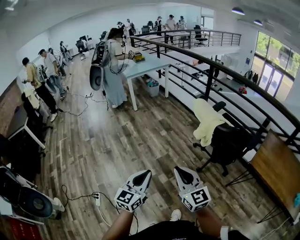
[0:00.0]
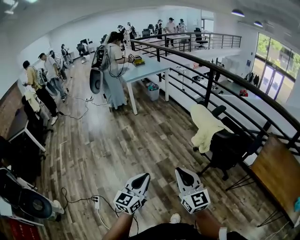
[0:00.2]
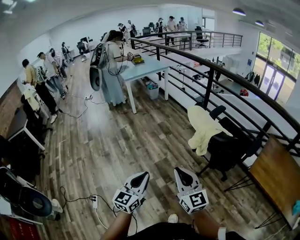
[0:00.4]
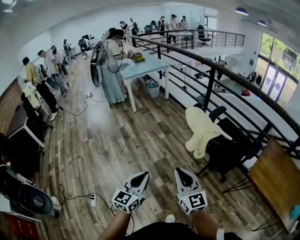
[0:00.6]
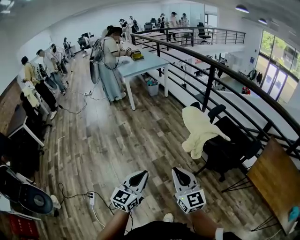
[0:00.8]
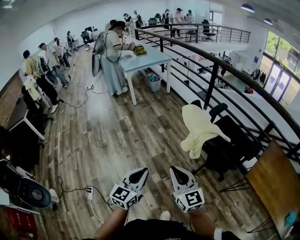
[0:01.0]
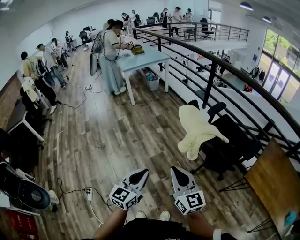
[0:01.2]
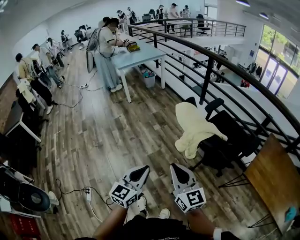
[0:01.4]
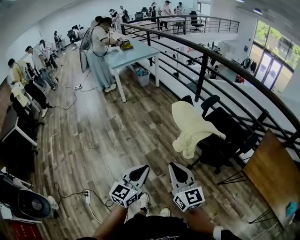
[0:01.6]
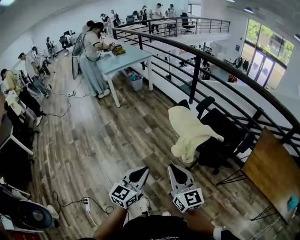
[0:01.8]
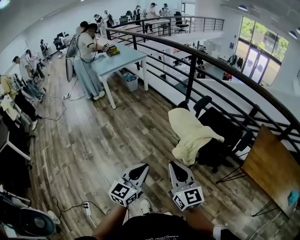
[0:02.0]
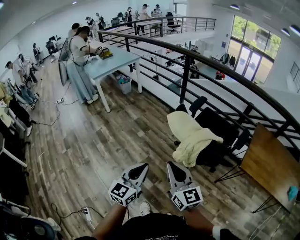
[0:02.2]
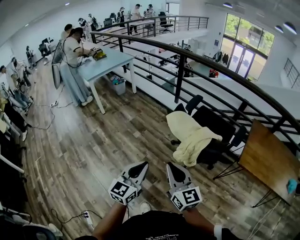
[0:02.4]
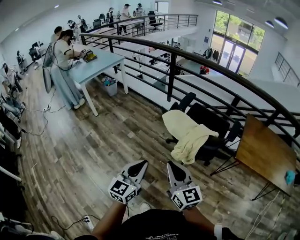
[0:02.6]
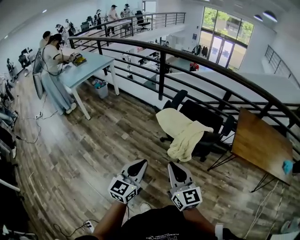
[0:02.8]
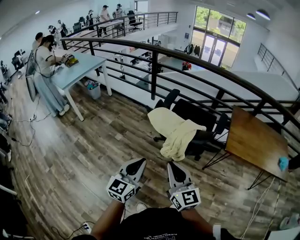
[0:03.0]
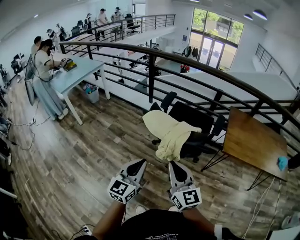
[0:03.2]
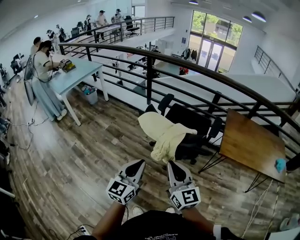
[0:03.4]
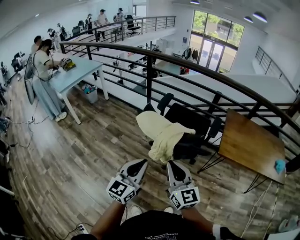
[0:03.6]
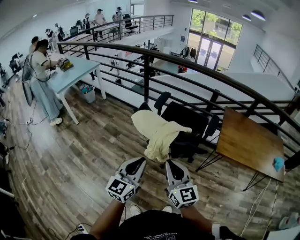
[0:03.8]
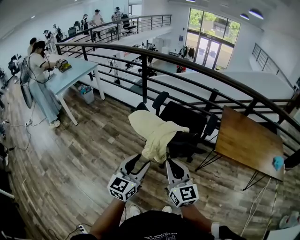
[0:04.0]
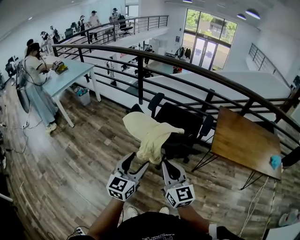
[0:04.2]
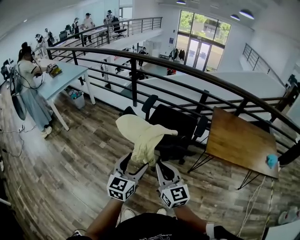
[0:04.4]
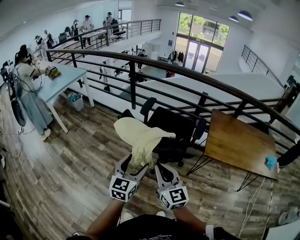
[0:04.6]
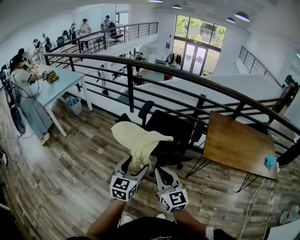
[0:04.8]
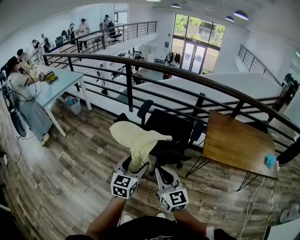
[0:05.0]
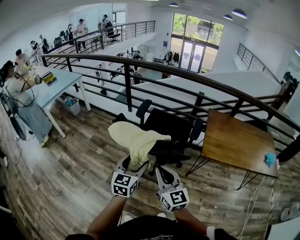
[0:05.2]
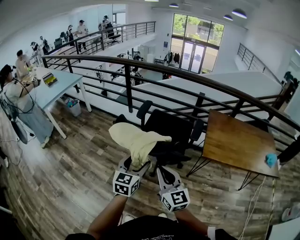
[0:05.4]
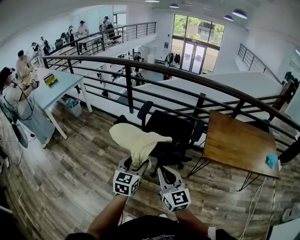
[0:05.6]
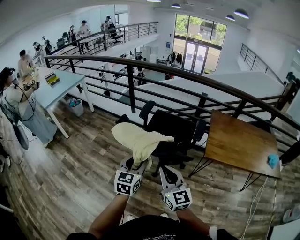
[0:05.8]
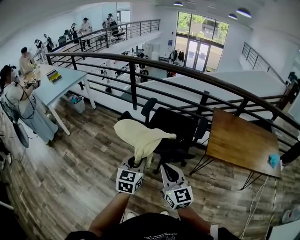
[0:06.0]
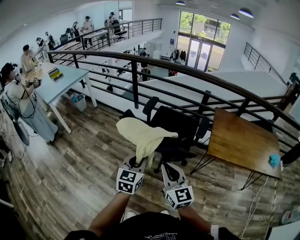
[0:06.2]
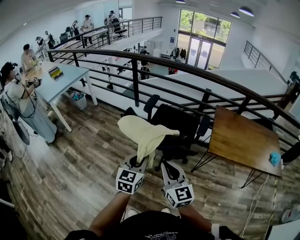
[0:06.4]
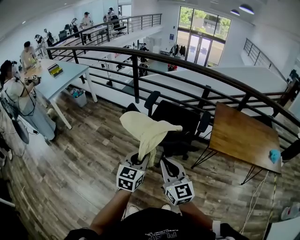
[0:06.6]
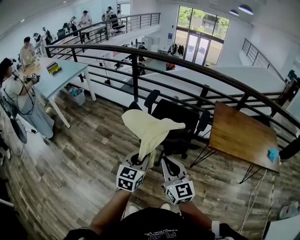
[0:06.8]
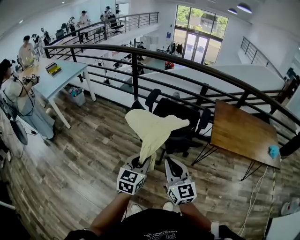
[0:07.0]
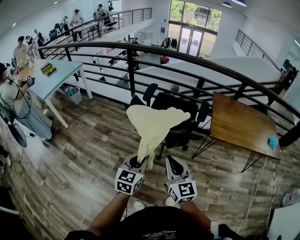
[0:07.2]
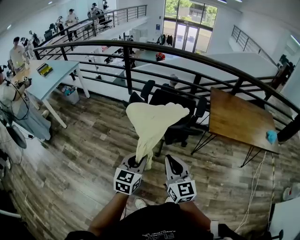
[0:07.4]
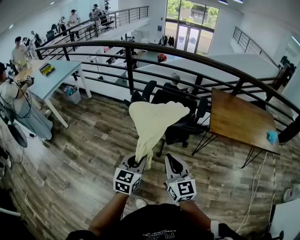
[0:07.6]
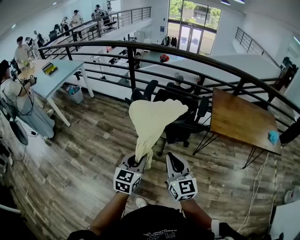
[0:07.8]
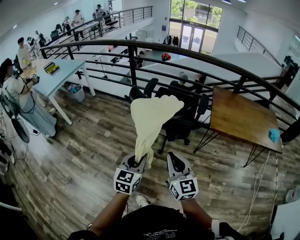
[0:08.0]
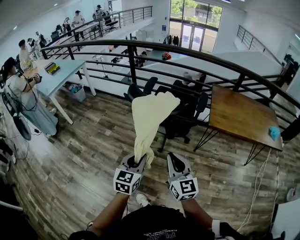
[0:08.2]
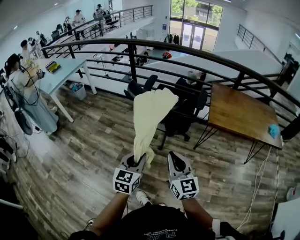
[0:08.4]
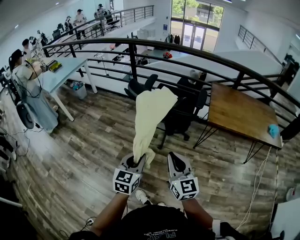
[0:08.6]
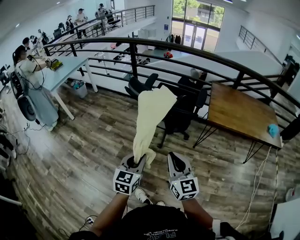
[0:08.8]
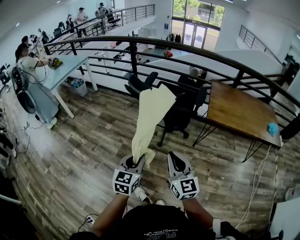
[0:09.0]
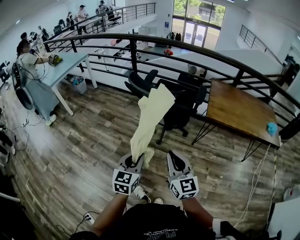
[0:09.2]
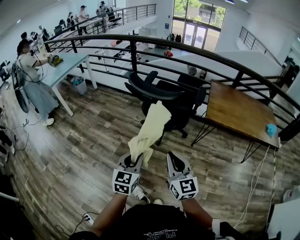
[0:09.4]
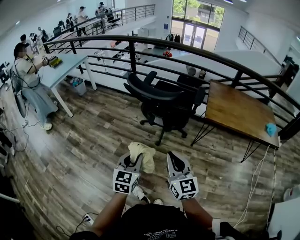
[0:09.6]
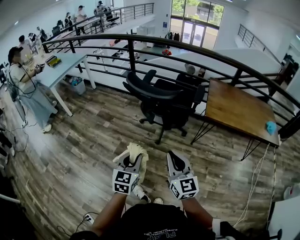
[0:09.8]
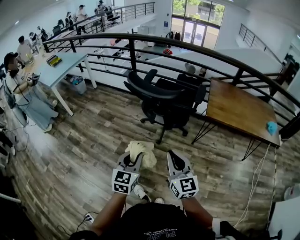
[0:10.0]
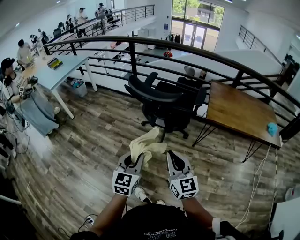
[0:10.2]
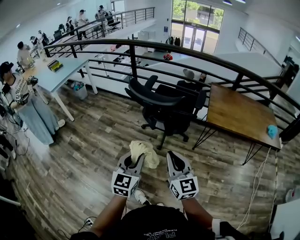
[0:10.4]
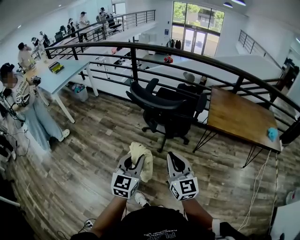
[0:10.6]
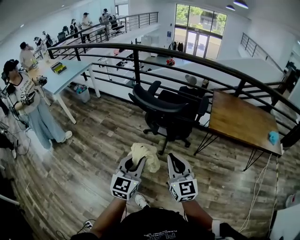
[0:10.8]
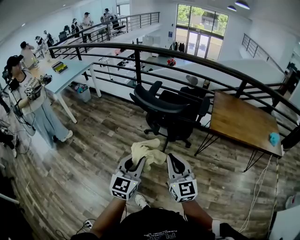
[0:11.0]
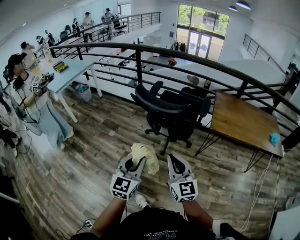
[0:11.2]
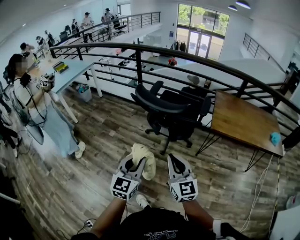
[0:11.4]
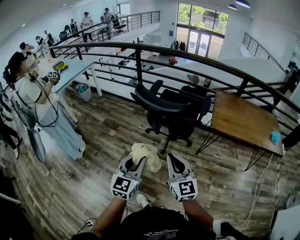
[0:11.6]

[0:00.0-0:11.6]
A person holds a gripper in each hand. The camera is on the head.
0:00.0 to 0:01.4: Both grippers move to the right and forward, approximately 15 cm.
0:01.4 to 0:02.8: The left gripper ends up roughly 10 cm from where it was, and turns by some 20 degrees. Meanwhile the right gripper ends up roughly 5 cm from where it was, and changes its angle by approximately 30 degrees.
0:02.8 to 0:04.4: The left gripper shifts approximately 15 cm to the right and forward, and opens its fingers. Meanwhile the right gripper goes about 10 cm to the right.
0:04.4 to 0:05.8: The left gripper travels forward by approximately 5 cm, and closes its fingers.
0:05.8 to 0:07.2: The left gripper heads backward and to the left, covering some 10 cm, and closes up. The right gripper goes roughly 5 cm to the left.
0:07.2 to 0:08.8: The left gripper heads backward, covering roughly 15 cm. Meanwhile the right gripper travels backward and to the right by approximately 15 cm.
0:08.8 to 0:10.2: There are only small adjustments of the grippers.
0:10.2 to 0:11.6: There are only small adjustments of the grippers.

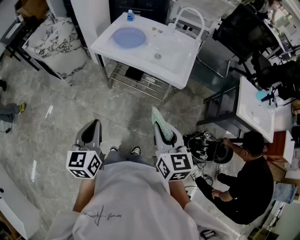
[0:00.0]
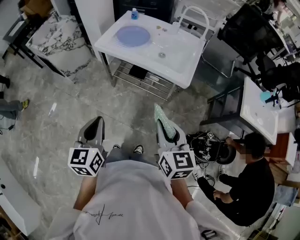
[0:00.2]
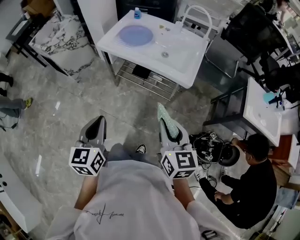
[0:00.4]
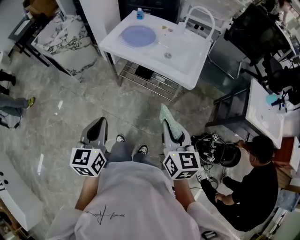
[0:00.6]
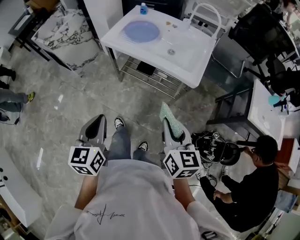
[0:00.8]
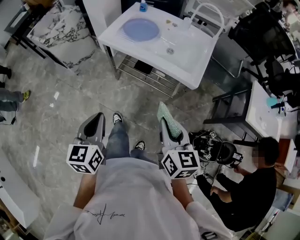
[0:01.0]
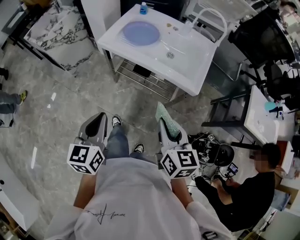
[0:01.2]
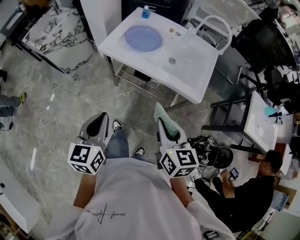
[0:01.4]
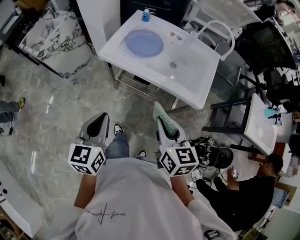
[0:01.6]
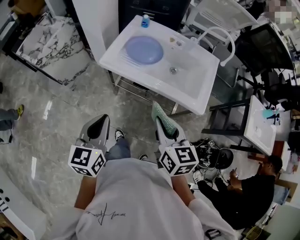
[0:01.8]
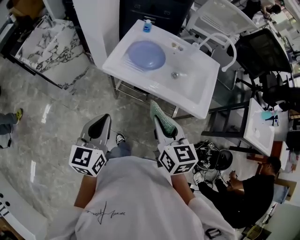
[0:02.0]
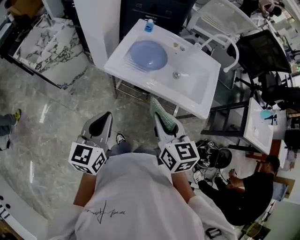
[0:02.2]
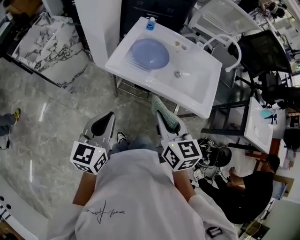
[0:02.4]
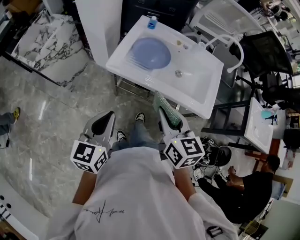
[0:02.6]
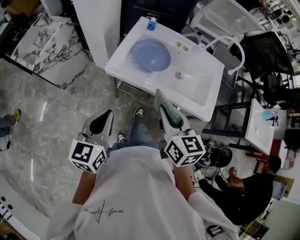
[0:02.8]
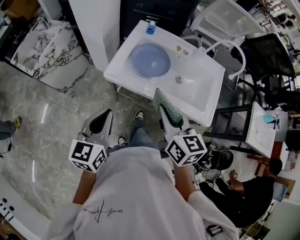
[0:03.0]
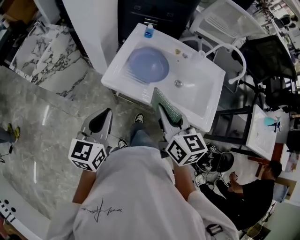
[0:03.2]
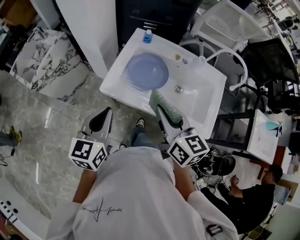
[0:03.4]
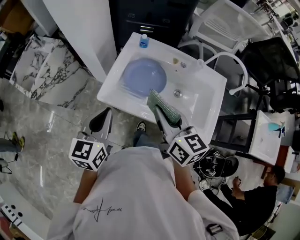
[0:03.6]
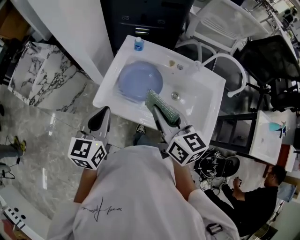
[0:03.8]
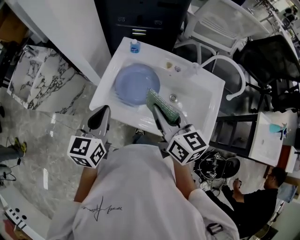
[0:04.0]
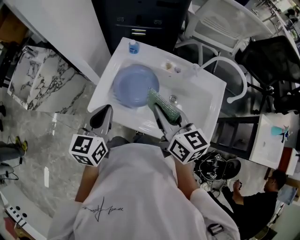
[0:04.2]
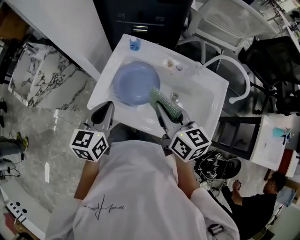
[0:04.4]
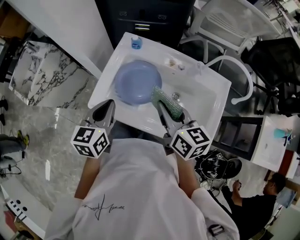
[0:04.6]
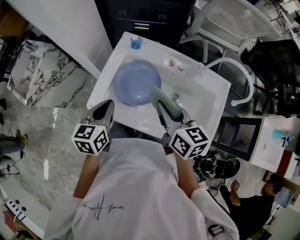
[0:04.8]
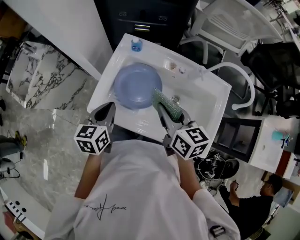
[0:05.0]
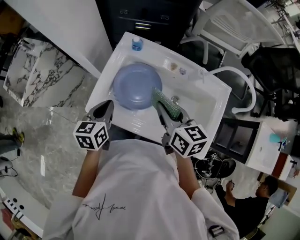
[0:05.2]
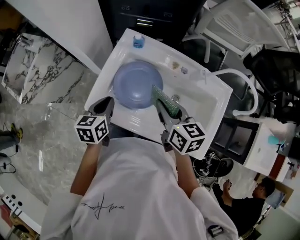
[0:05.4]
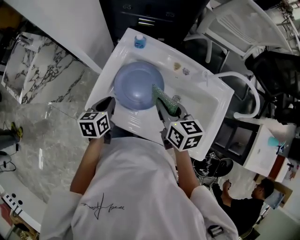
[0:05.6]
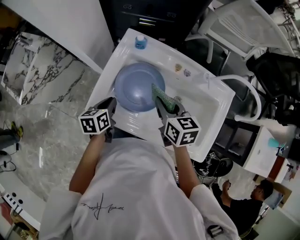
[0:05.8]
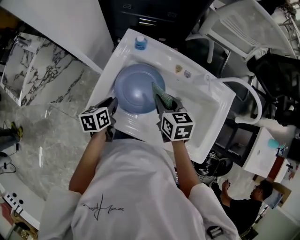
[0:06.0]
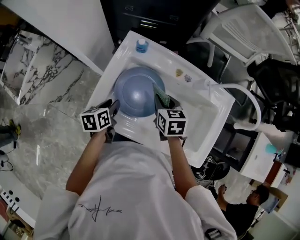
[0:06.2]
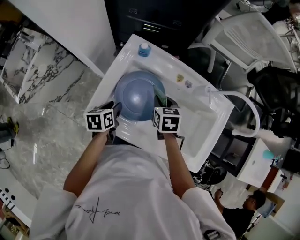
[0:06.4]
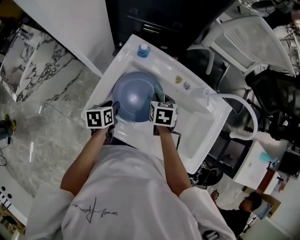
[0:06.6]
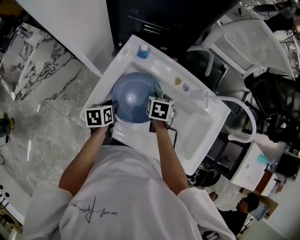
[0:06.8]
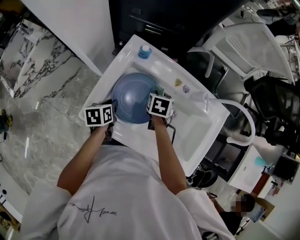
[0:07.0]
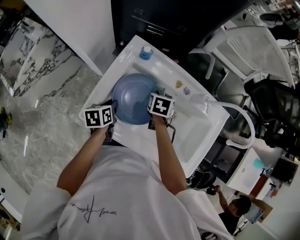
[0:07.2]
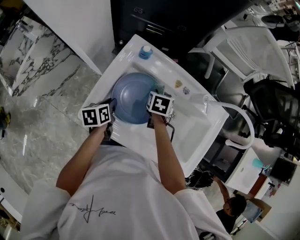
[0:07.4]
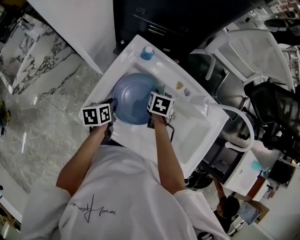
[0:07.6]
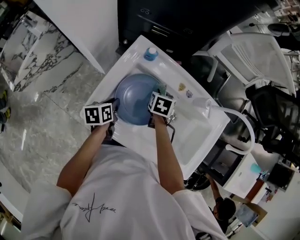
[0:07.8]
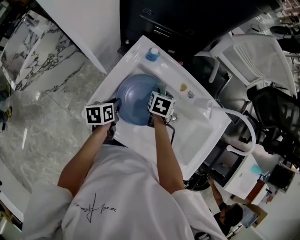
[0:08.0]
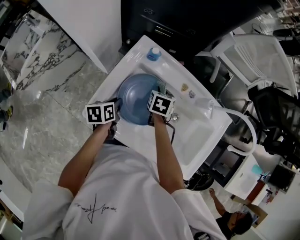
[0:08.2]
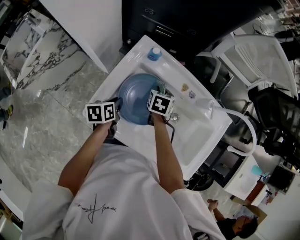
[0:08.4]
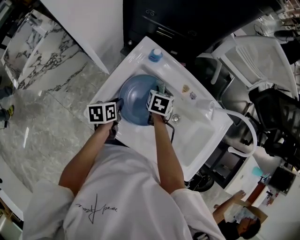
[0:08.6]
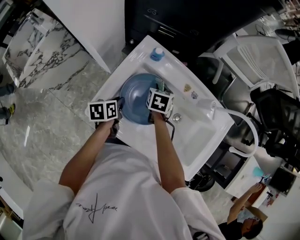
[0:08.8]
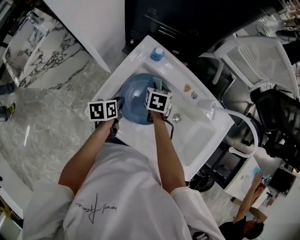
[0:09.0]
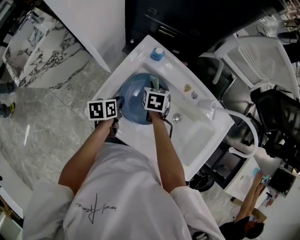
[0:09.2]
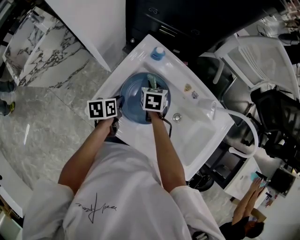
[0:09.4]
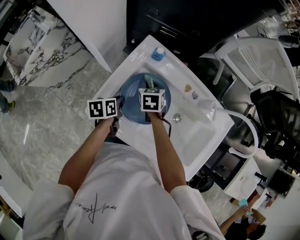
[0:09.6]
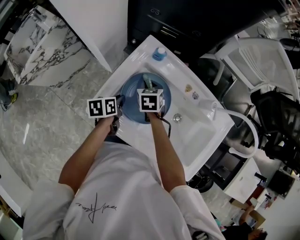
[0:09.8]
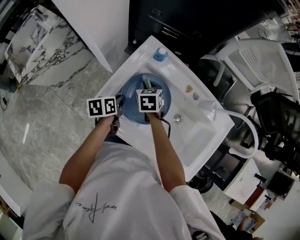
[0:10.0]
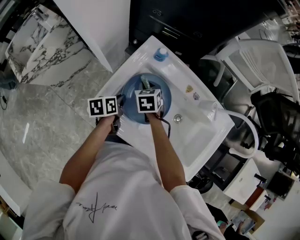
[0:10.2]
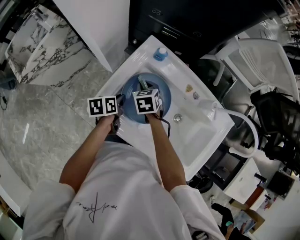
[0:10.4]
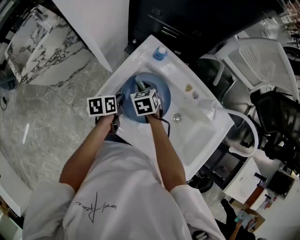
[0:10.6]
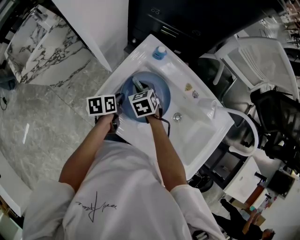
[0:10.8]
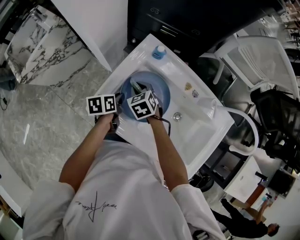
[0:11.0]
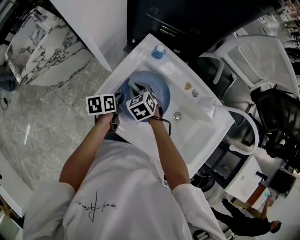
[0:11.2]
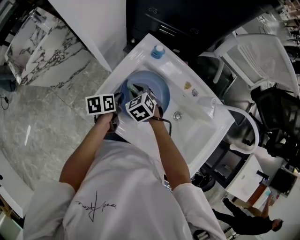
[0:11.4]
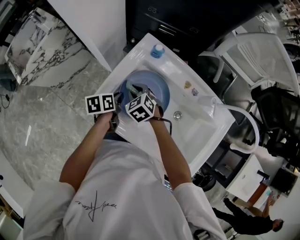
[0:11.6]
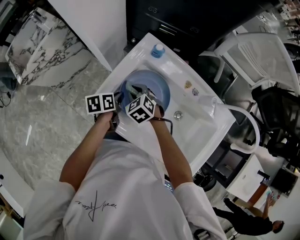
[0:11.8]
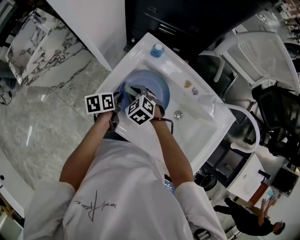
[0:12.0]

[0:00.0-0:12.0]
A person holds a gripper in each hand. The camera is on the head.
0:00.0 to 0:01.6: The left gripper travels forward by about 20 cm; the right gripper is displaced forward and to the left by approximately 20 cm.
0:01.6 to 0:03.0: The grippers both shift forward and to the left by some 15 cm.
0:03.0 to 0:04.4: The two grippers go some 20 cm forward and to the right.
0:04.4 to 0:06.0: The right gripper heads downward and forward, covering approximately 20 cm, and turns by about 20 degrees. The left gripper travels downward by about 20 cm, and turns by roughly 30 degrees.
0:06.0 to 0:07.6: The left gripper ends up roughly 5 cm from where it was. The right gripper heads downward and forward, covering approximately 15 cm, and changes its angle by about 30 degrees.
0:07.6 to 0:09.0: The right gripper heads to the left, covering some 5 cm.
0:09.0 to 0:10.4: The right gripper shifts roughly 10 cm to the left, and turns by roughly 20 degrees.
0:10.4 to 0:12.0: The right gripper is displaced backward by roughly 5 cm, and turns by about 30 degrees.
